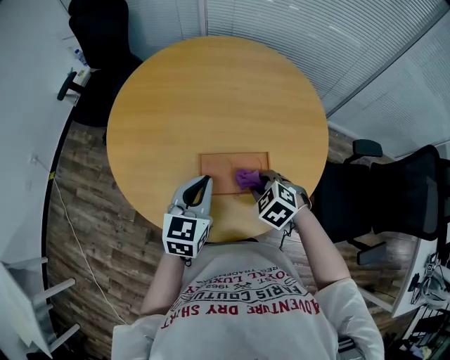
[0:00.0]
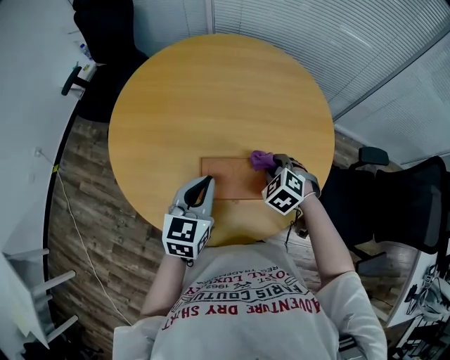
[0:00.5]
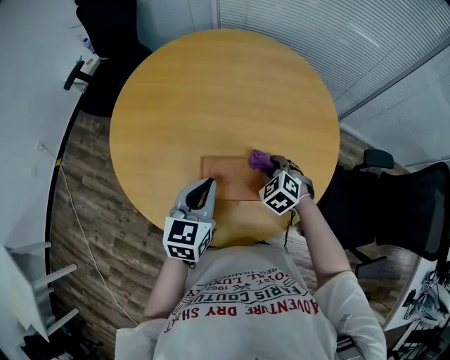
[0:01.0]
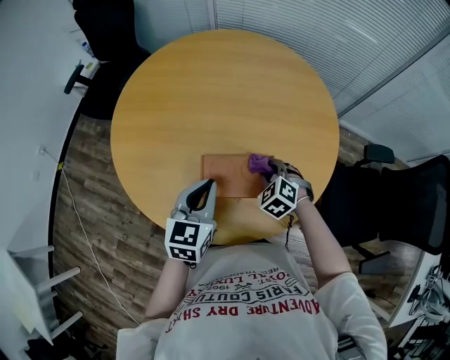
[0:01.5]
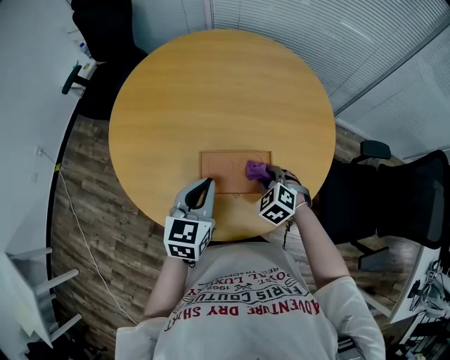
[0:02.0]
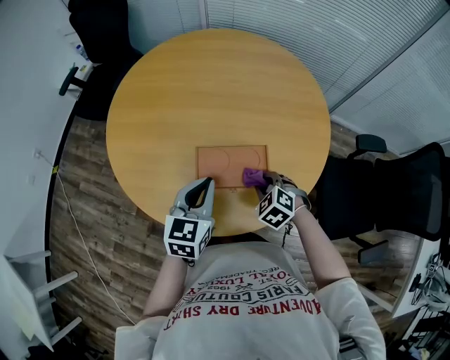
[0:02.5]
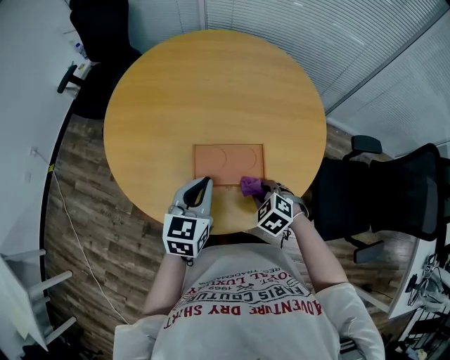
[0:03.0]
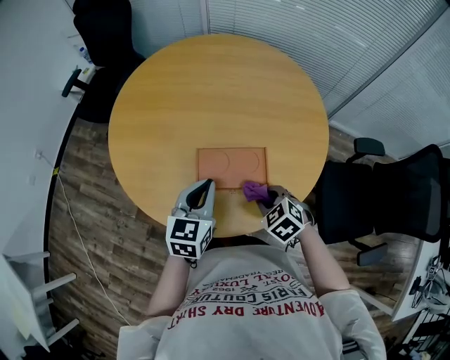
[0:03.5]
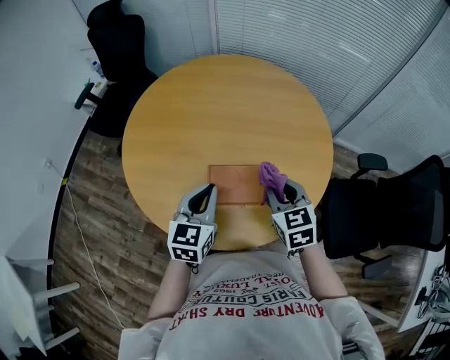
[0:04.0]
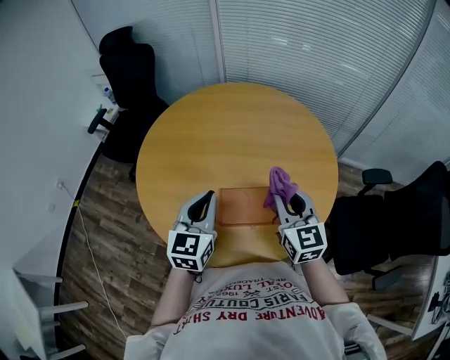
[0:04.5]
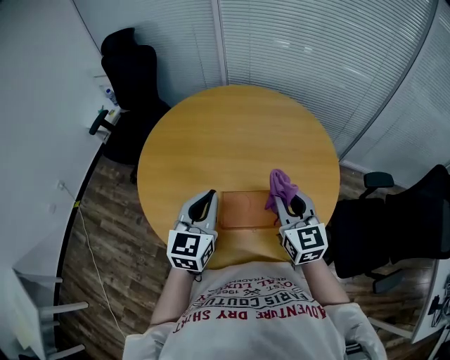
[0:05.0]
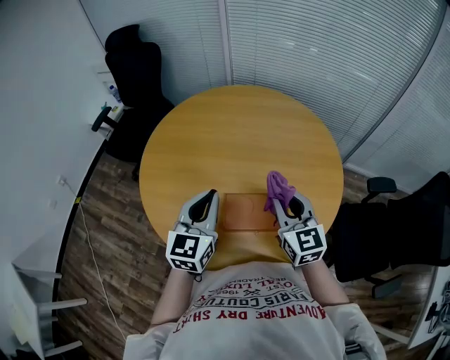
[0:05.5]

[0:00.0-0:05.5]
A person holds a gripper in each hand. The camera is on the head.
0:02.0 to 0:03.5: The right gripper heads backward, covering about 10 cm.
0:03.5 to 0:05.5: The left gripper is displaced upward, to the left and forward by about 15 cm. Meanwhile the right gripper moves upward and forward, some 20 cm, and tips its fingers upward by some 50 degrees.

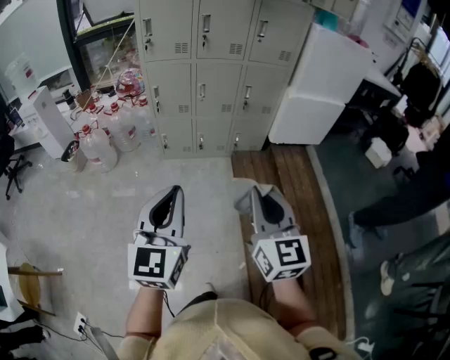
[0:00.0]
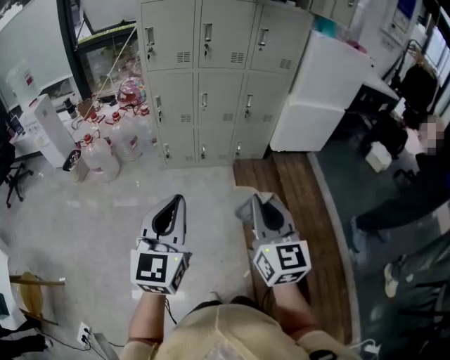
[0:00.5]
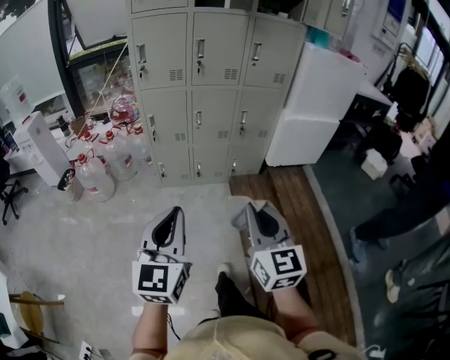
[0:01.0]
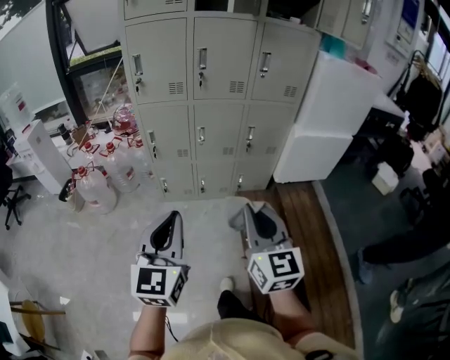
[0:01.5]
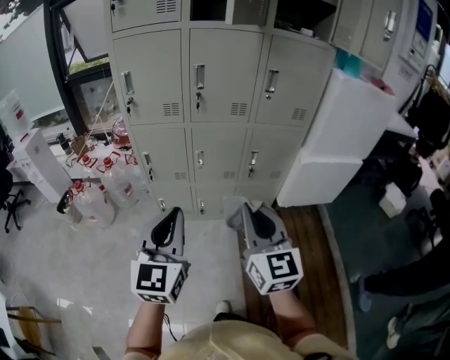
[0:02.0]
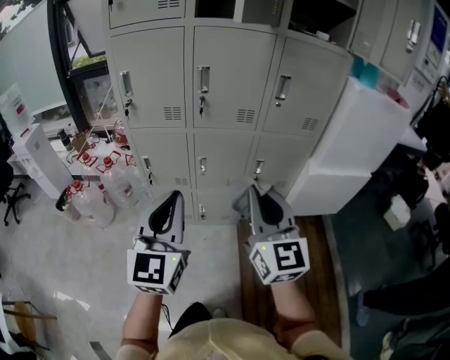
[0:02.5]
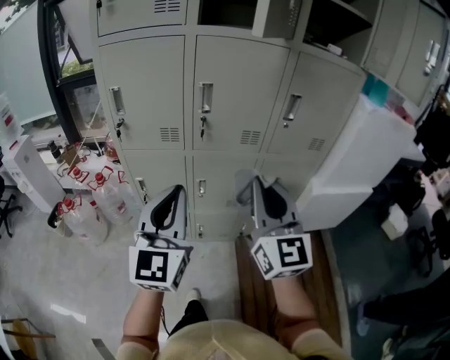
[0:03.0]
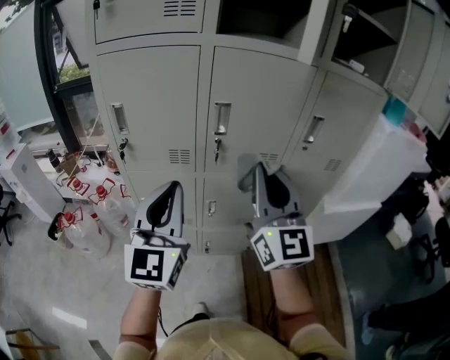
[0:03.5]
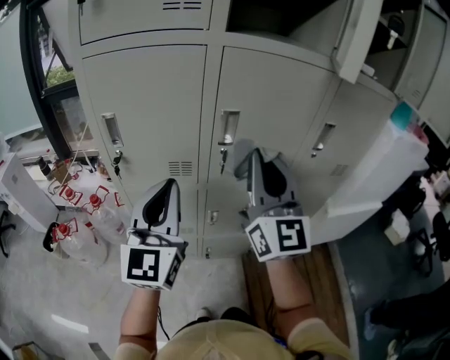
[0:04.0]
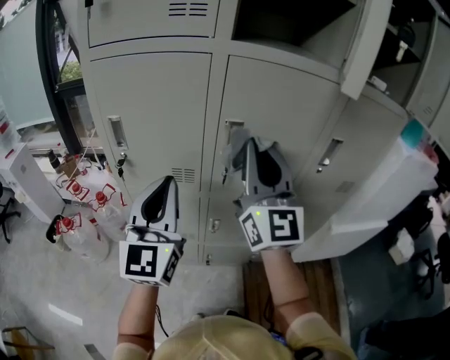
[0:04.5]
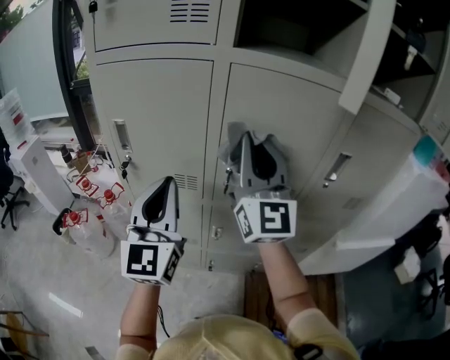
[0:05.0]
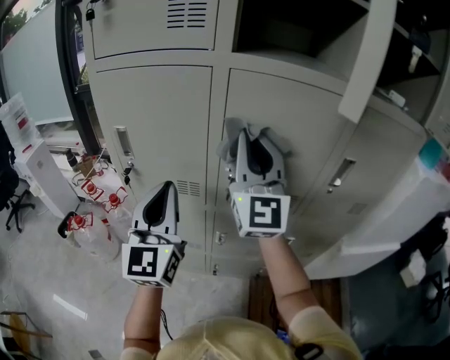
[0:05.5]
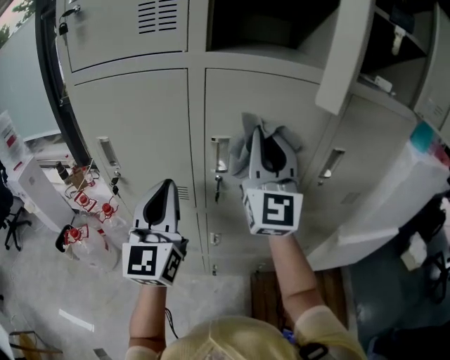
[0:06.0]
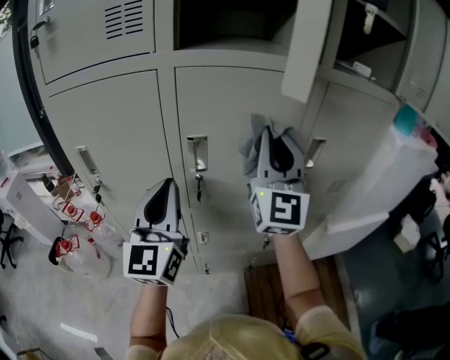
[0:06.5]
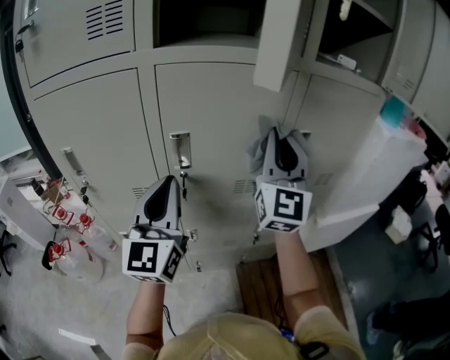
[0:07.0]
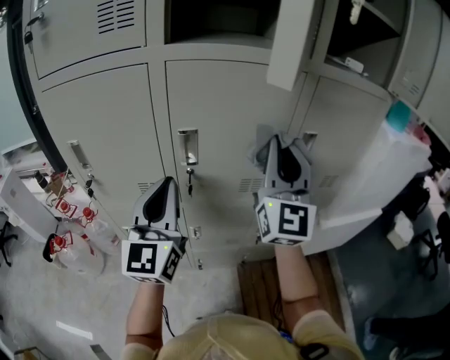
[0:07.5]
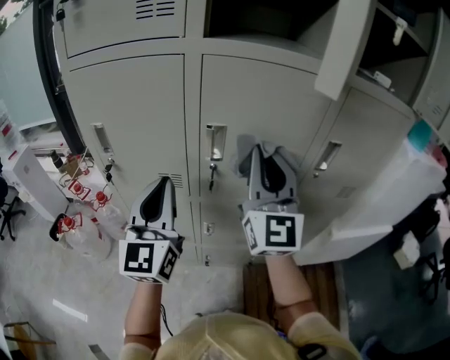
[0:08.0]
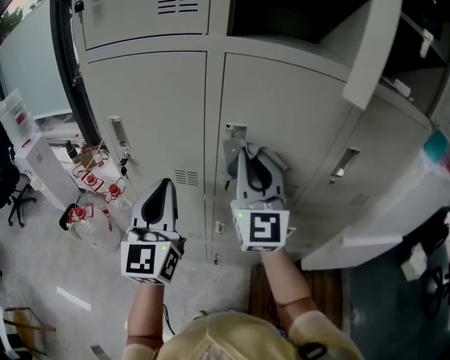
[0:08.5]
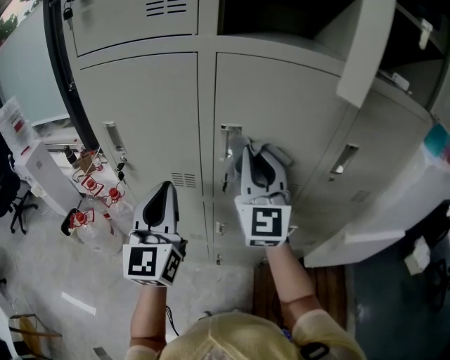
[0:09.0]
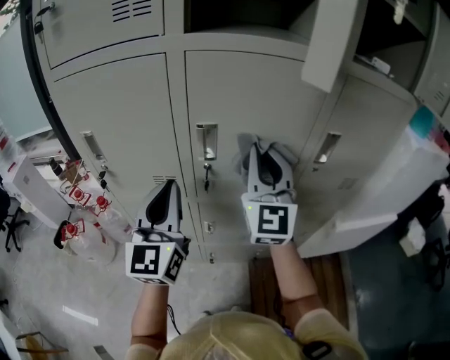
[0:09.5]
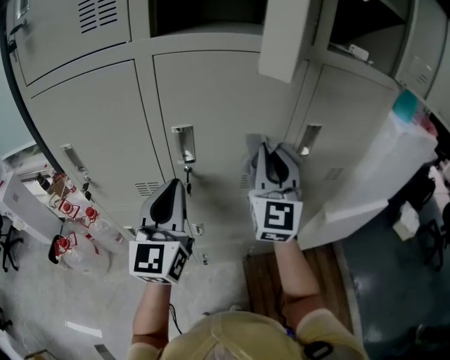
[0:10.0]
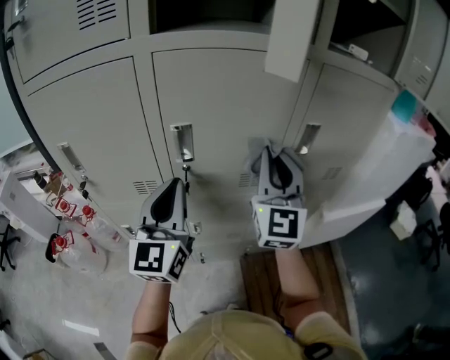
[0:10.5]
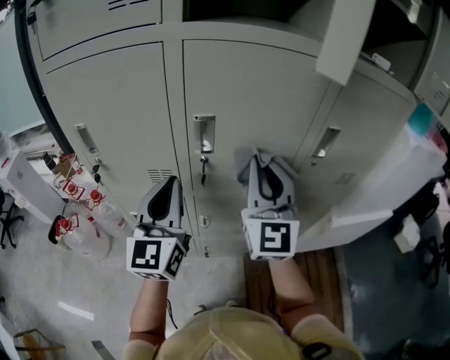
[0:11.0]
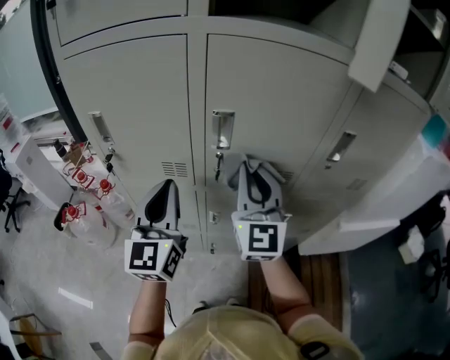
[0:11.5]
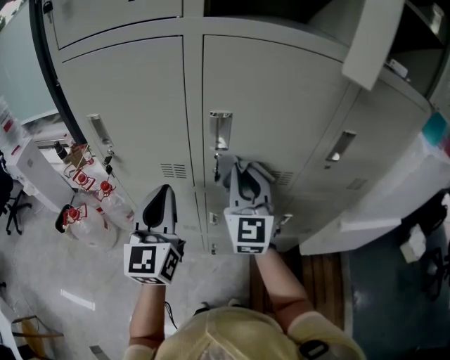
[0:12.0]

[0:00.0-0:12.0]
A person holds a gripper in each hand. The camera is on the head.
0:00.0 to 0:02.0: The two grippers go some 35 cm forward.
0:02.0 to 0:04.0: The left gripper shifts approximately 35 cm forward. Meanwhile the right gripper goes roughly 40 cm forward and upward, and turns by approximately 20 degrees.
0:04.0 to 0:06.0: The left gripper moves forward, about 5 cm. The right gripper goes approximately 10 cm forward and upward.
0:06.0 to 0:08.0: The left gripper reaches some 10 cm to the right, then returns. The right gripper moves some 15 cm to the right and comes back.
0:08.0 to 0:10.0: The grippers both shift to the right by roughly 10 cm.
0:10.0 to 0:12.0: The right gripper travels to the left and downward by roughly 15 cm, while the left gripper moves to the left, approximately 10 cm.

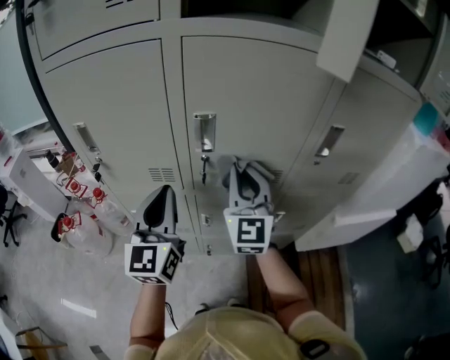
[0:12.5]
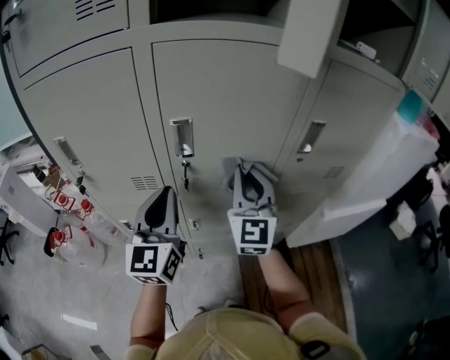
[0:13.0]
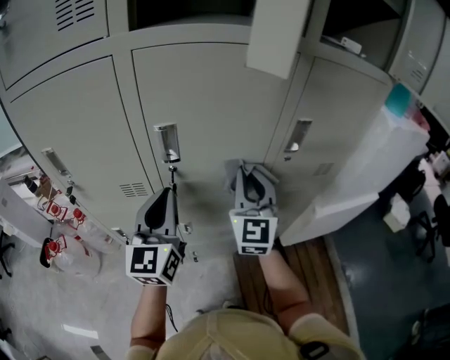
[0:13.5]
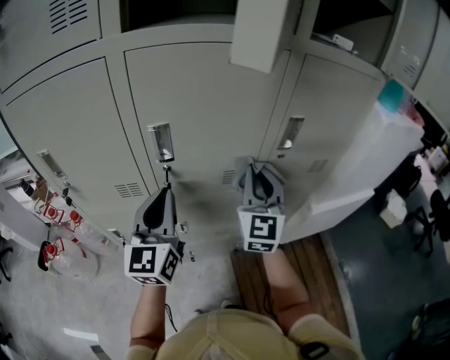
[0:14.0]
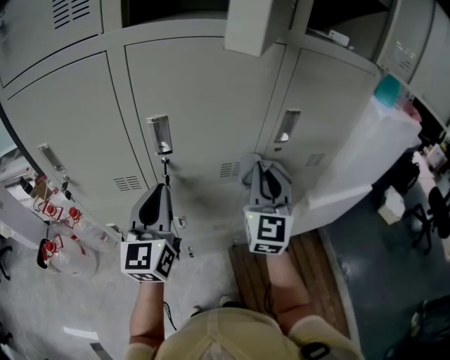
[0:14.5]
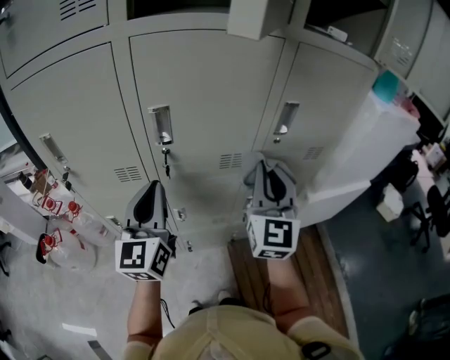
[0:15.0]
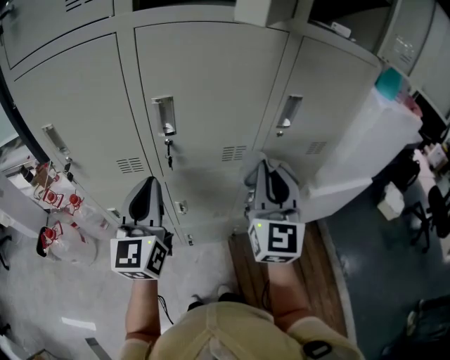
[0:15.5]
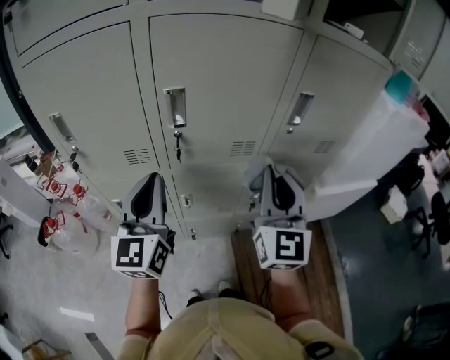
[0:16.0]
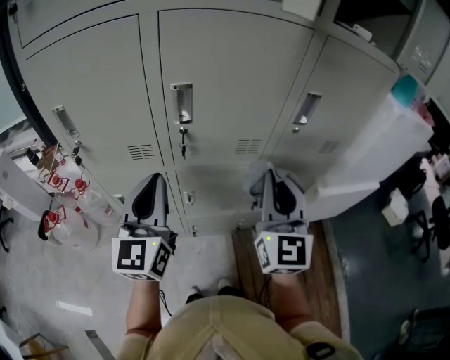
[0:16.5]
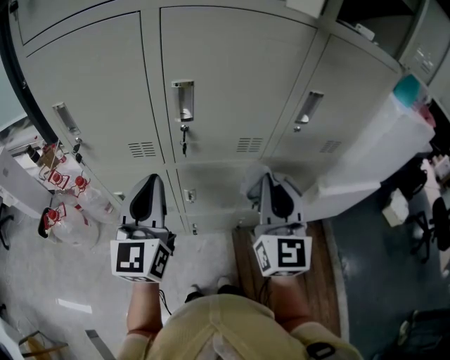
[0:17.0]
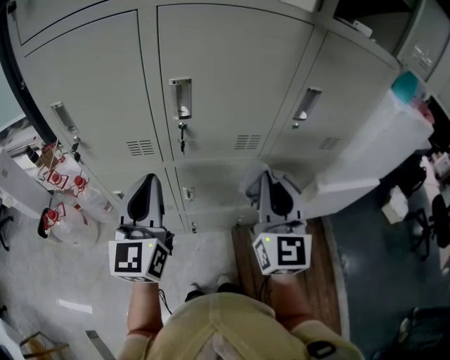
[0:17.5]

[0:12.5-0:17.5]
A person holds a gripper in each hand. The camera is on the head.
0:12.5 to 0:15.0: The left gripper heads to the right, covering some 5 cm. The right gripper moves to the right, roughly 15 cm.
0:15.0 to 0:17.5: The right gripper goes roughly 5 cm backward. Meanwhile the left gripper shifts by about 5 cm.

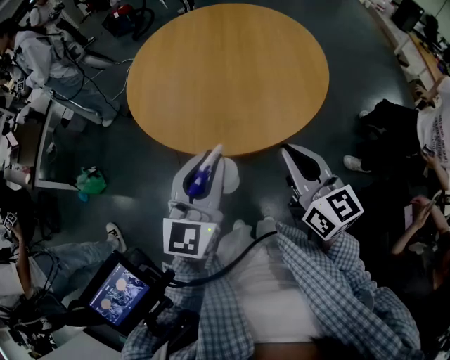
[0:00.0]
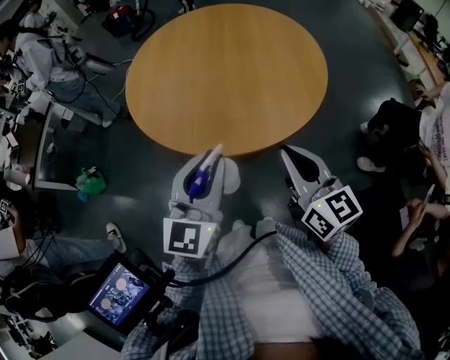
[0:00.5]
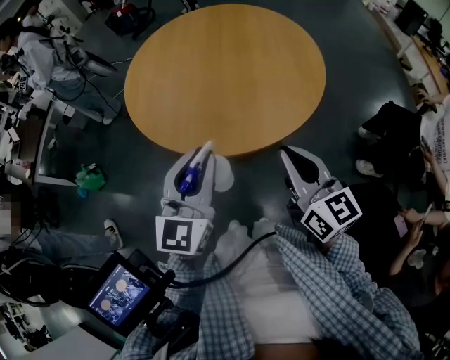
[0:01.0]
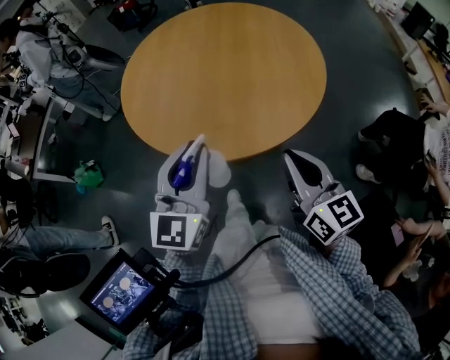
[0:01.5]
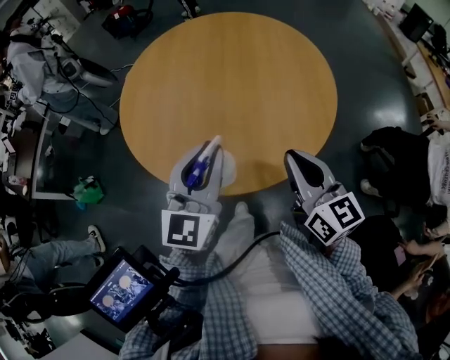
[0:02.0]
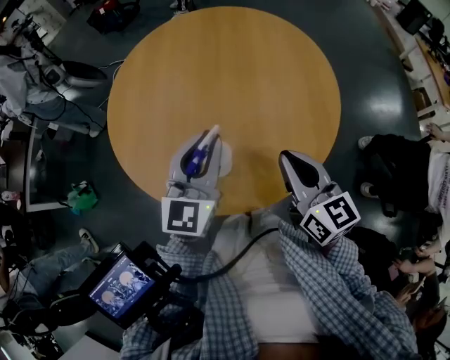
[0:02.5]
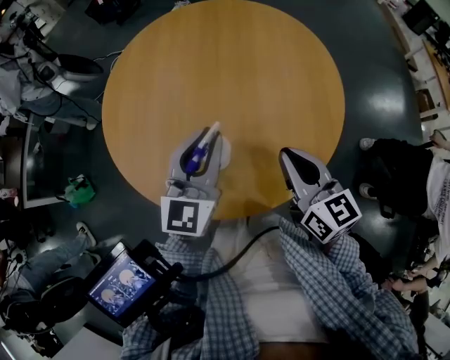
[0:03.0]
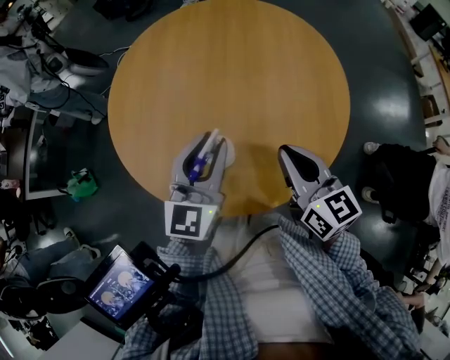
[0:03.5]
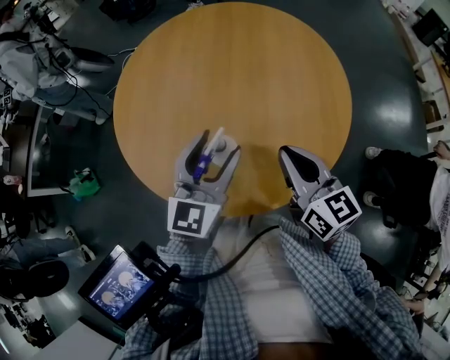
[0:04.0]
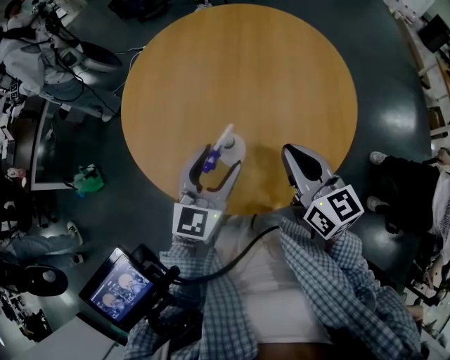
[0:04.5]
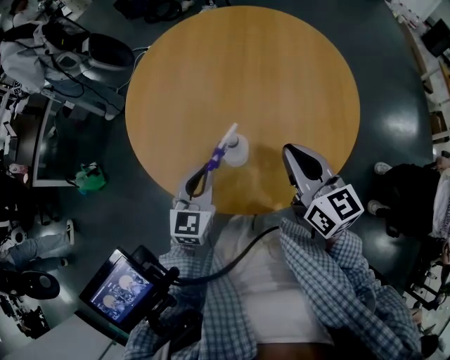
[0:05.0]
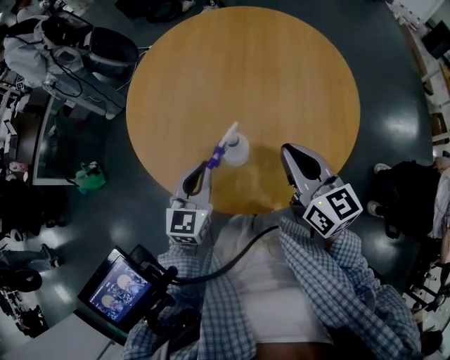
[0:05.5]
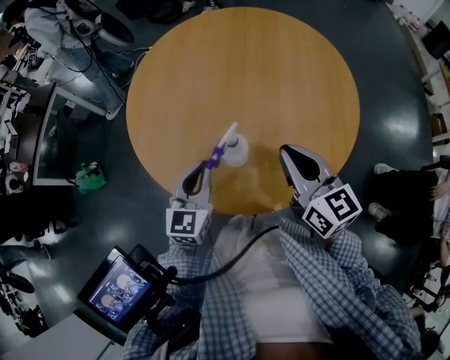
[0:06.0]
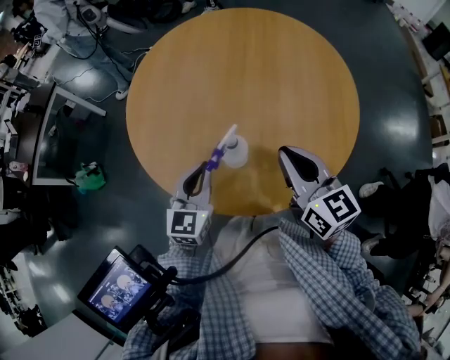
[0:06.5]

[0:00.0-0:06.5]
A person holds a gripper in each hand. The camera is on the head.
0:00.0 to 0:02.0: Both grippers travel together forward, some 10 cm.
0:02.0 to 0:04.5: The right gripper goes about 10 cm forward; the left gripper goes some 10 cm downward and forward, and opens.
0:04.5 to 0:06.5: The left gripper moves to the left, roughly 5 cm, and closes.
